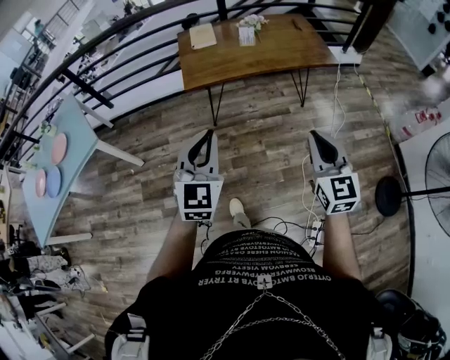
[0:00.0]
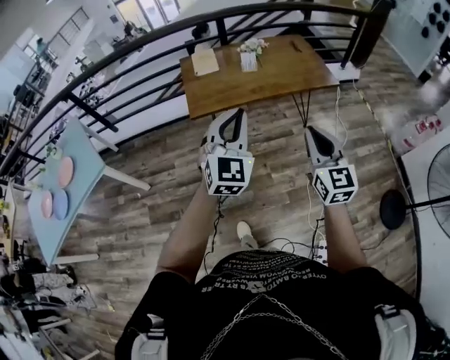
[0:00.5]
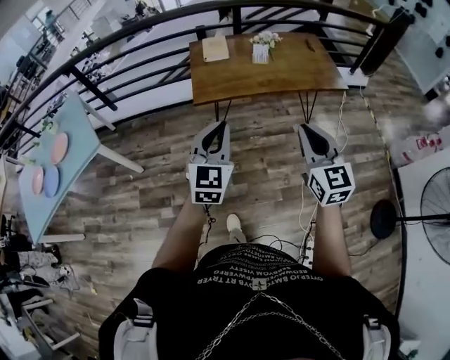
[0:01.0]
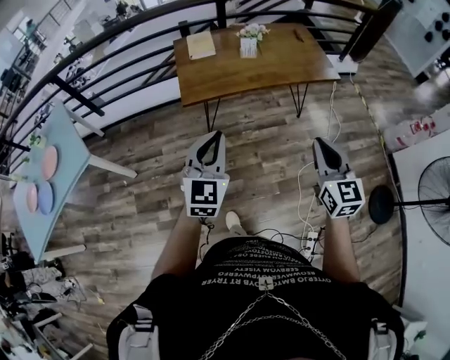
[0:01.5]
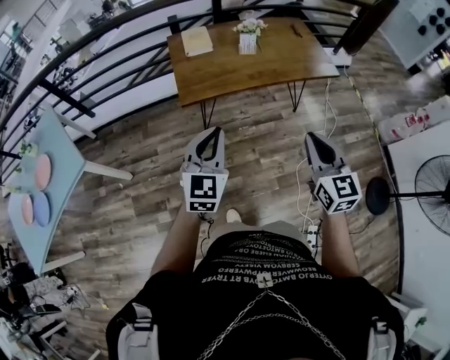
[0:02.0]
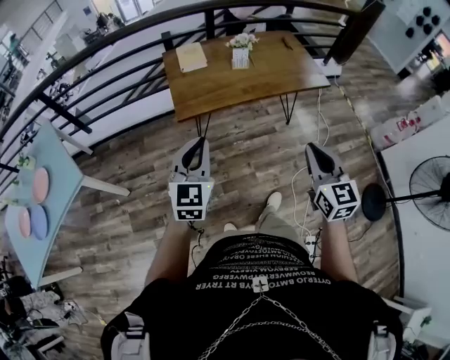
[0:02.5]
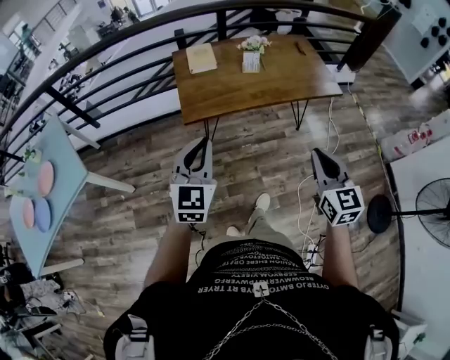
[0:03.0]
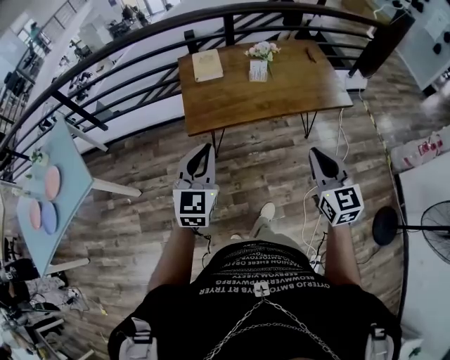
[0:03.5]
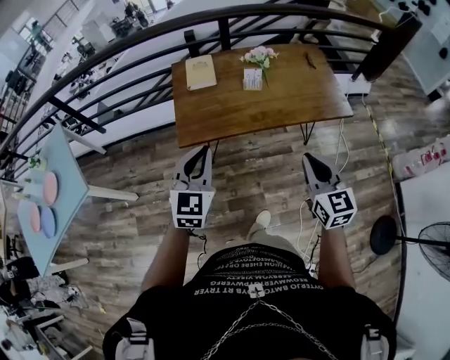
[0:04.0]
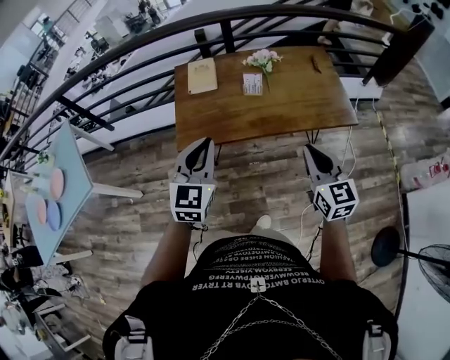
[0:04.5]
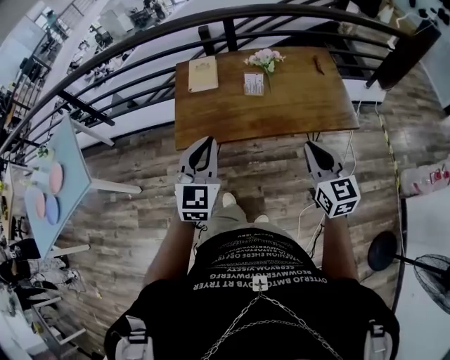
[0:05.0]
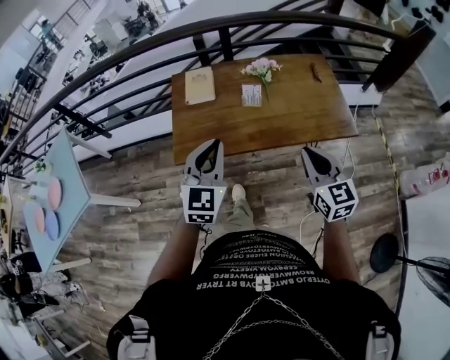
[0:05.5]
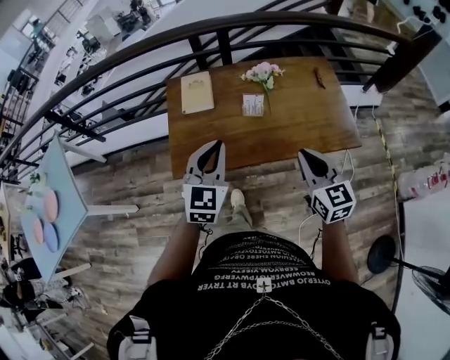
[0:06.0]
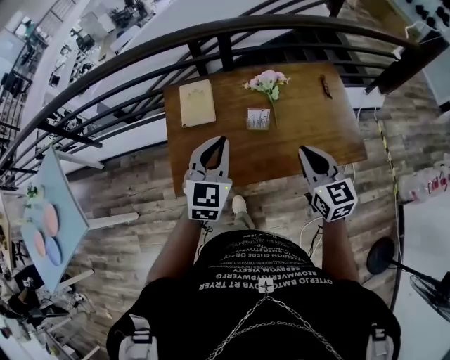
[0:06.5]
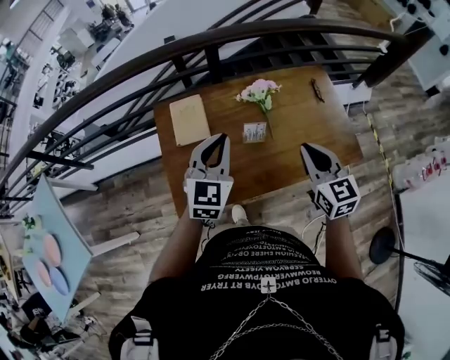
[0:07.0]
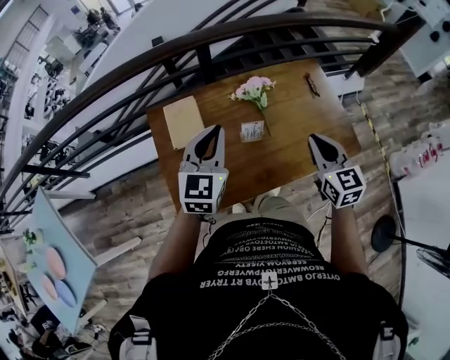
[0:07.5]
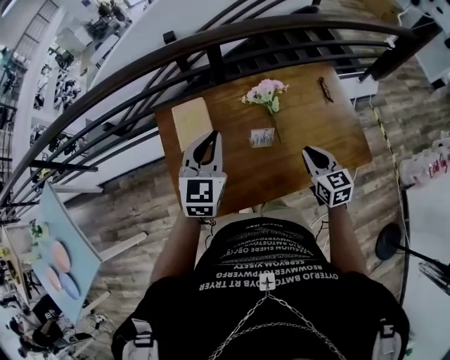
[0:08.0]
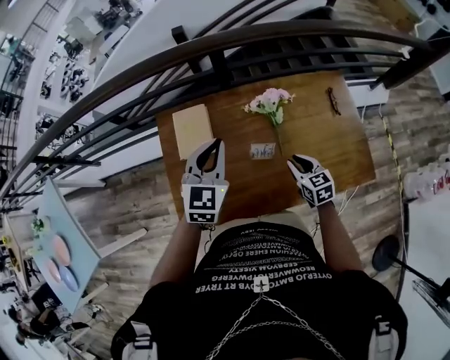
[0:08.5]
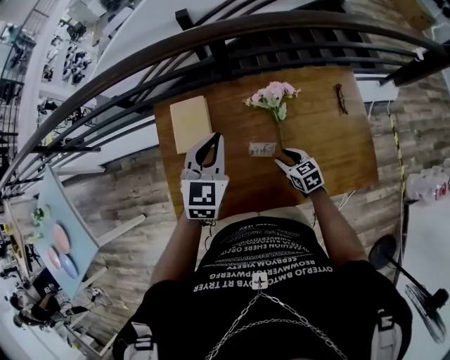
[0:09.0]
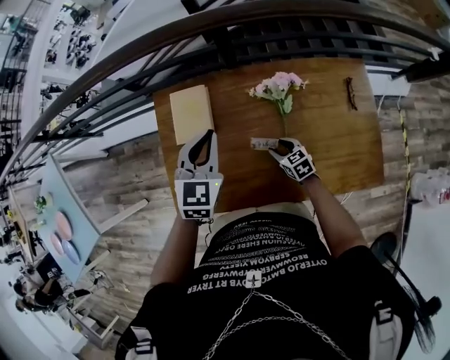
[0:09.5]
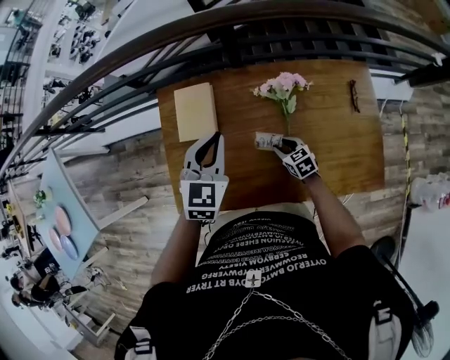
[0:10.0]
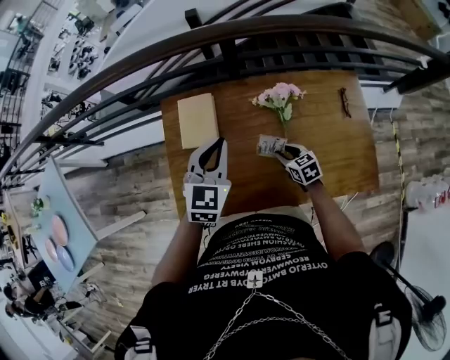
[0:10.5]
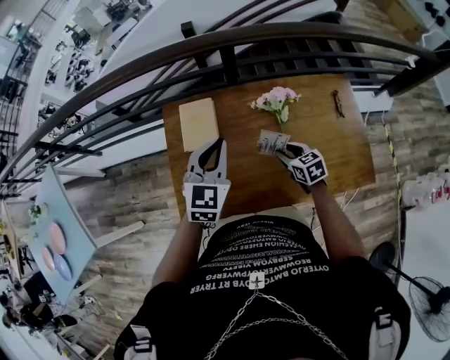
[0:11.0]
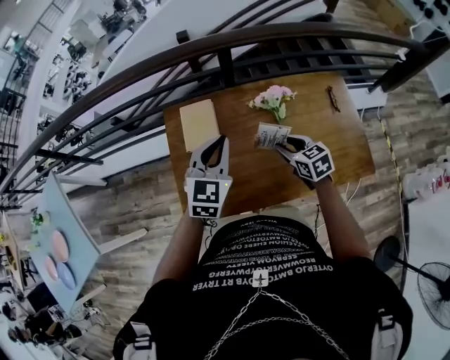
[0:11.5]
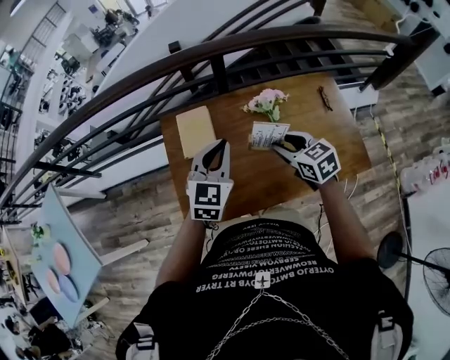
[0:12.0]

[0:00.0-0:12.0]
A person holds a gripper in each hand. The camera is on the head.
0:00.0 to 0:02.0: The left gripper travels forward by some 15 cm. Meanwhile the right gripper goes approximately 15 cm forward and to the left.
0:02.0 to 0:04.0: The right gripper is displaced forward and to the right by roughly 20 cm. The left gripper is displaced forward by roughly 15 cm.
0:04.0 to 0:06.0: The left gripper travels forward and to the right by about 20 cm. Meanwhile the right gripper travels forward by about 20 cm.
0:06.0 to 0:08.0: The left gripper goes some 25 cm forward. The right gripper moves forward and downward, approximately 25 cm.
0:08.0 to 0:10.0: The right gripper heads downward and forward, covering about 25 cm, changes its angle by roughly 30 degrees, and opens its fingers. Meanwhile the left gripper is displaced downward and forward by about 10 cm.
0:10.0 to 0:12.0: The right gripper is displaced upward by some 25 cm. The left gripper is displaced backward and upward by approximately 10 cm.

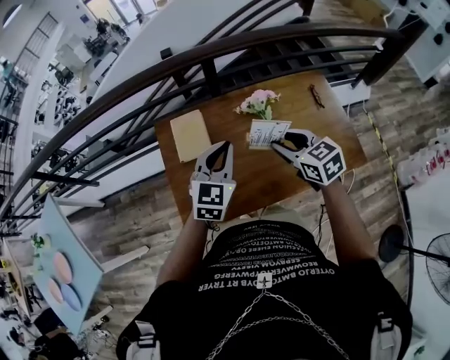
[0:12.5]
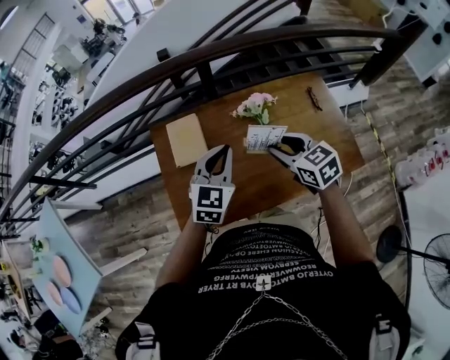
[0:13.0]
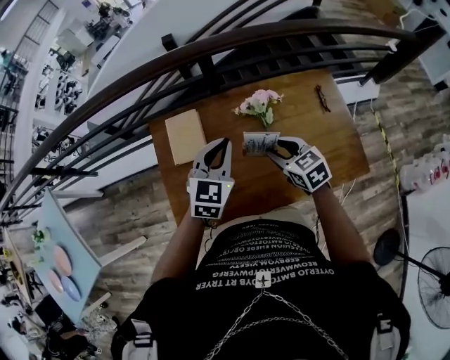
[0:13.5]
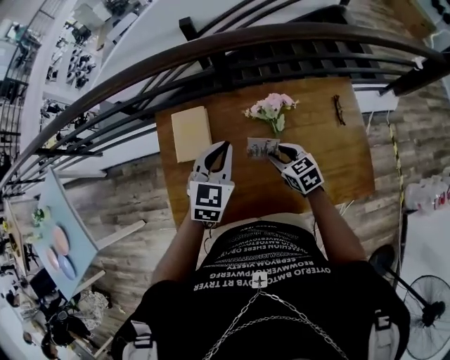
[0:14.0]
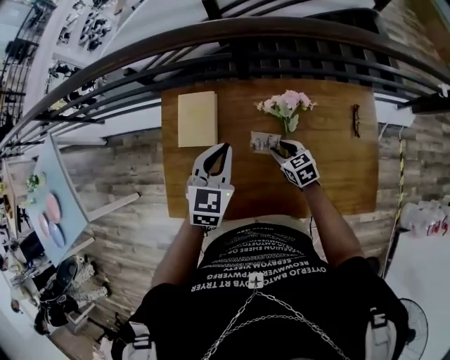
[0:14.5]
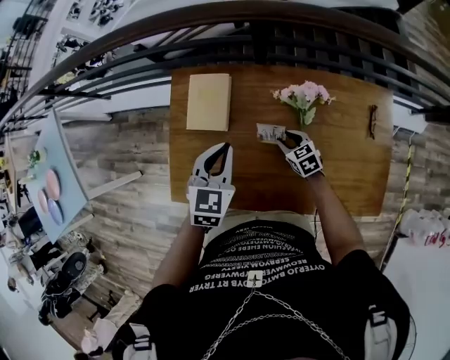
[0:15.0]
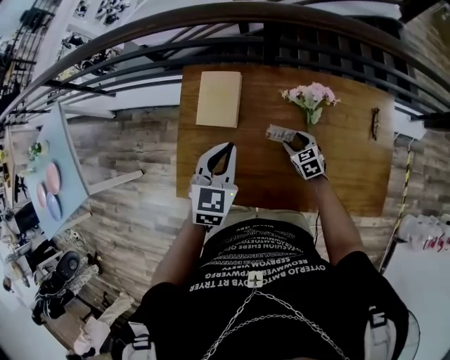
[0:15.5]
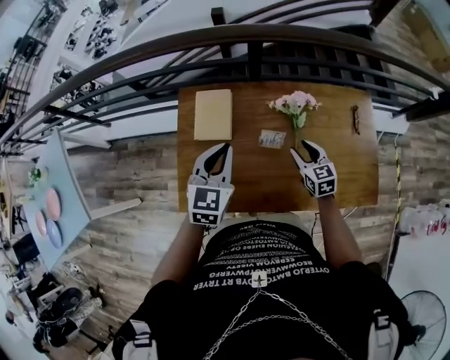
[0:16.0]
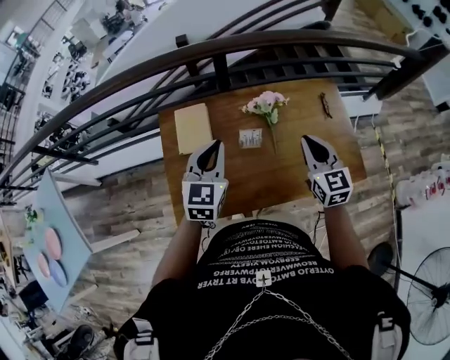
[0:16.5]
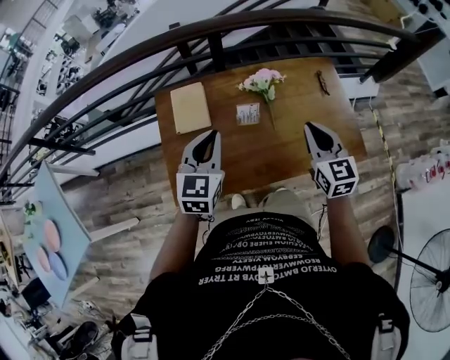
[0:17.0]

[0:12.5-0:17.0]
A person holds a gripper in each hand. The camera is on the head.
0:12.5 to 0:14.5: The left gripper travels forward and downward by roughly 15 cm, and turns by some 20 degrees. The right gripper is displaced downward and forward by roughly 30 cm.
0:14.5 to 0:17.0: The left gripper changes place by roughly 15 cm, while the right gripper is displaced upward by about 25 cm, swivels about 40 degrees, and closes up.

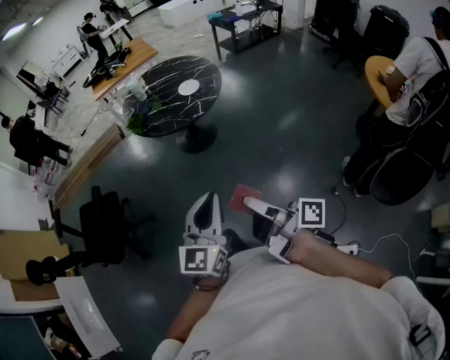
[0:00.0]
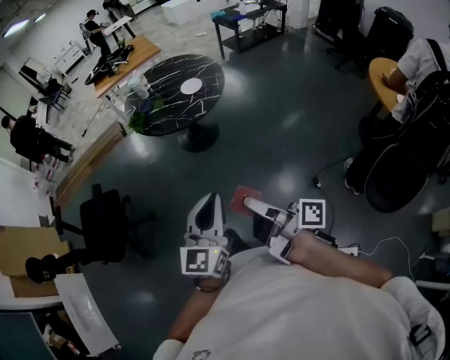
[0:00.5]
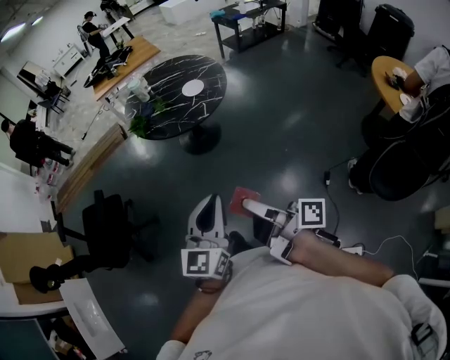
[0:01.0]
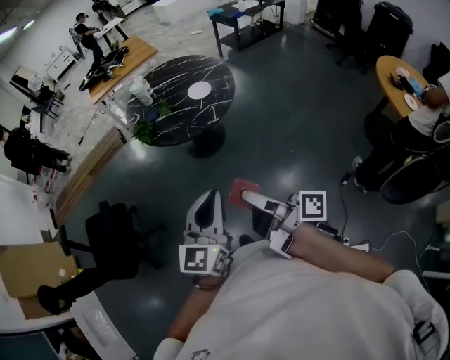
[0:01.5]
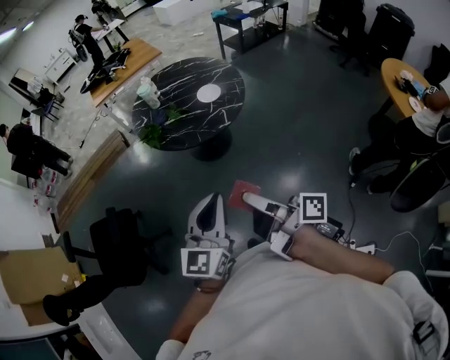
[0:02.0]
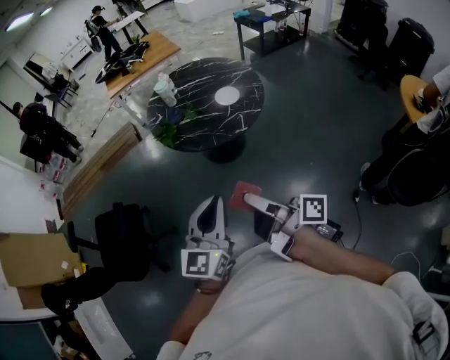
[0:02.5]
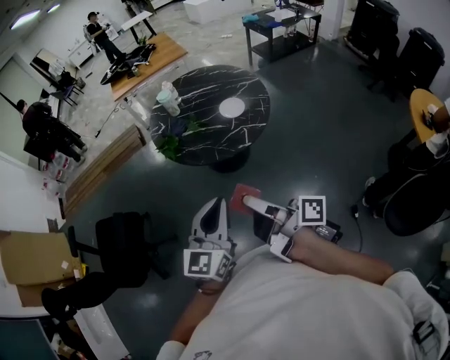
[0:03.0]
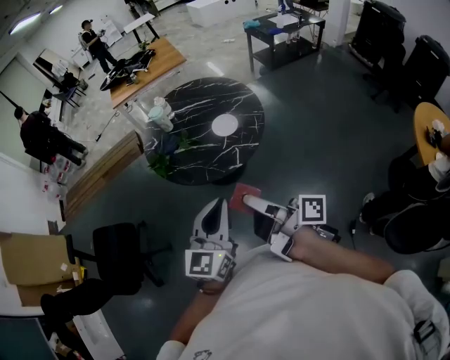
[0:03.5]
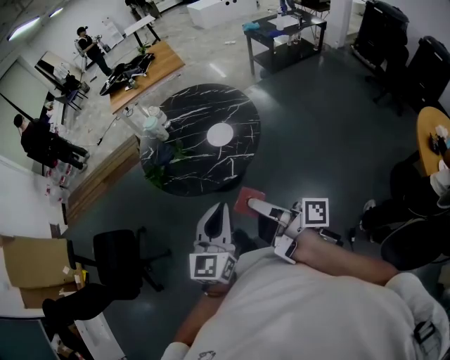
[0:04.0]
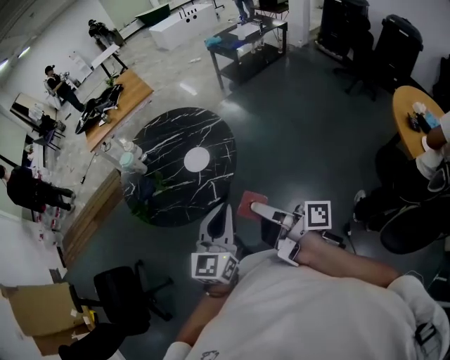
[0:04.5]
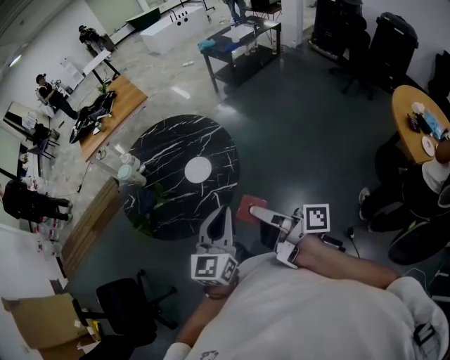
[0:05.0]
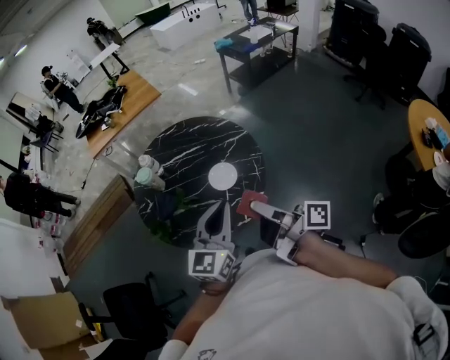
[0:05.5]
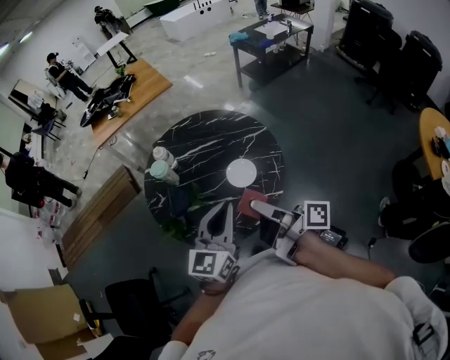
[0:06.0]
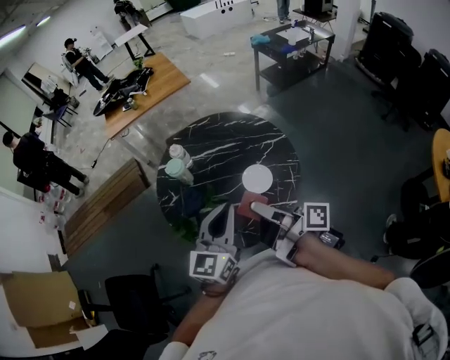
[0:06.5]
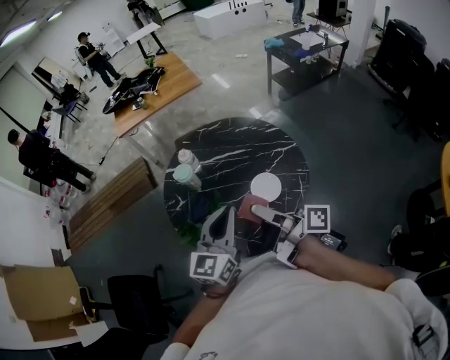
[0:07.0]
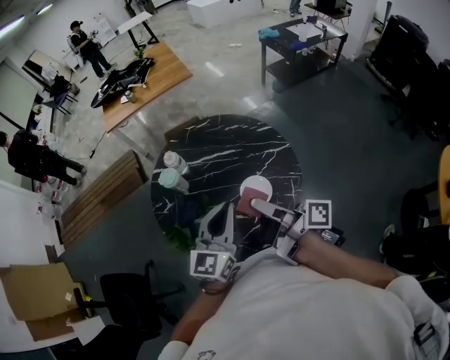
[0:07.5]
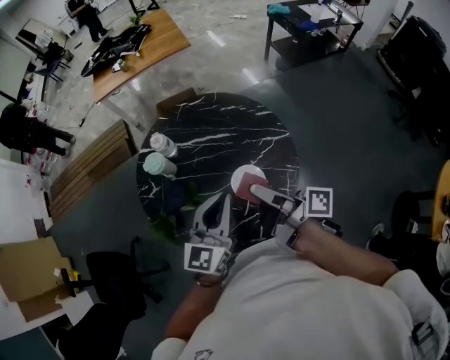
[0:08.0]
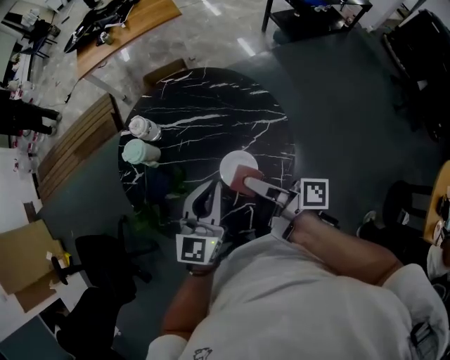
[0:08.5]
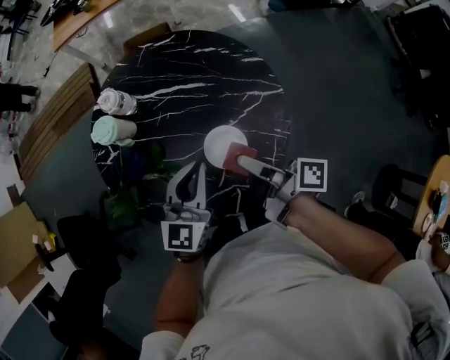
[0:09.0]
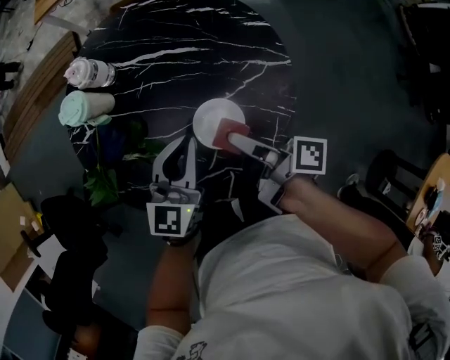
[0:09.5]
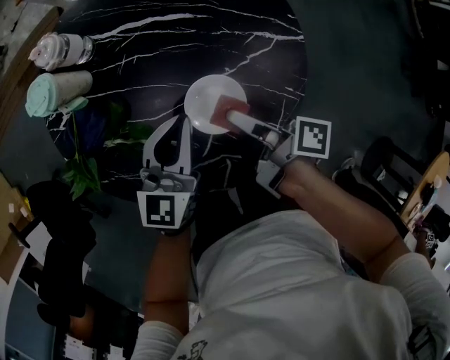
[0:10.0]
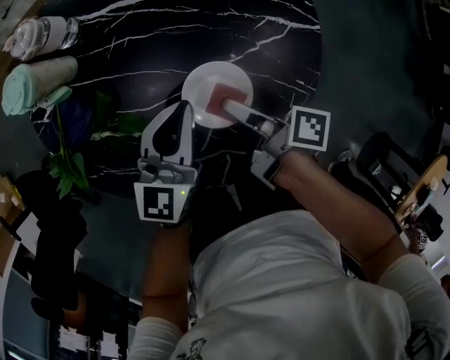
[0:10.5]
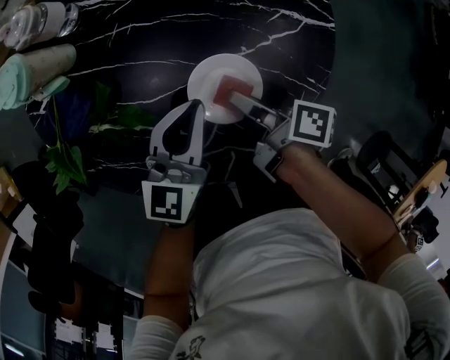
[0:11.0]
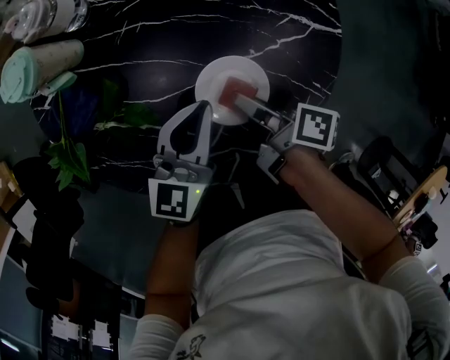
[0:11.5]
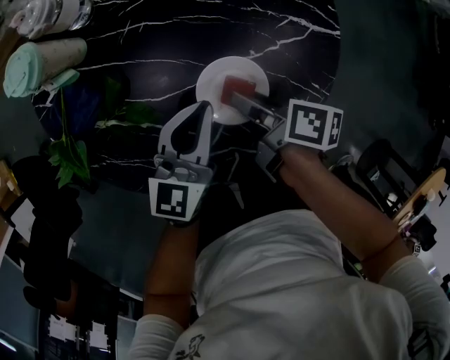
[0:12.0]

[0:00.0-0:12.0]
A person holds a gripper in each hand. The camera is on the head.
0:00.0 to 0:02.0: The left gripper shifts by some 20 cm.
0:02.0 to 0:04.0: The left gripper moves about 30 cm.
0:04.0 to 0:06.0: The left gripper moves roughly 30 cm.
0:06.0 to 0:08.0: The left gripper moves some 20 cm.
0:08.0 to 0:10.0: The left gripper is displaced downward by roughly 25 cm.
0:10.0 to 0:12.0: The left gripper goes roughly 5 cm downward.
